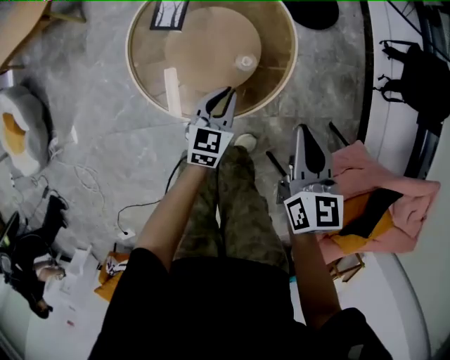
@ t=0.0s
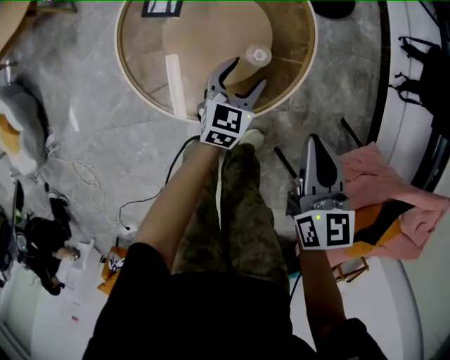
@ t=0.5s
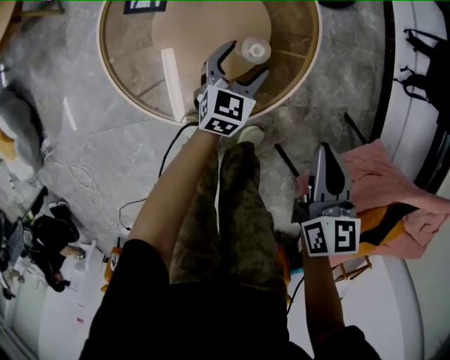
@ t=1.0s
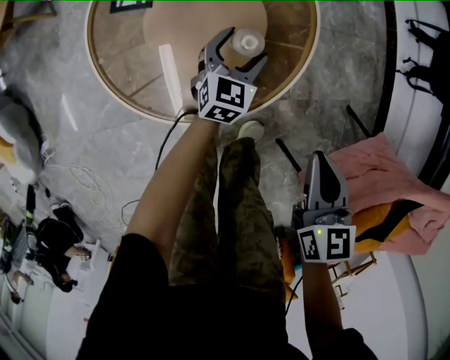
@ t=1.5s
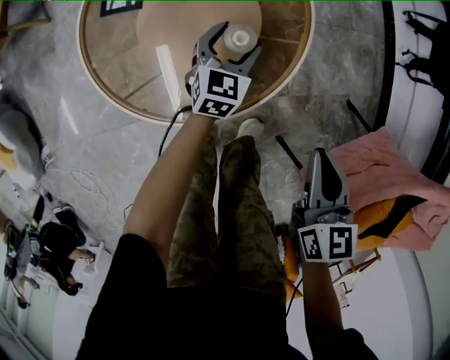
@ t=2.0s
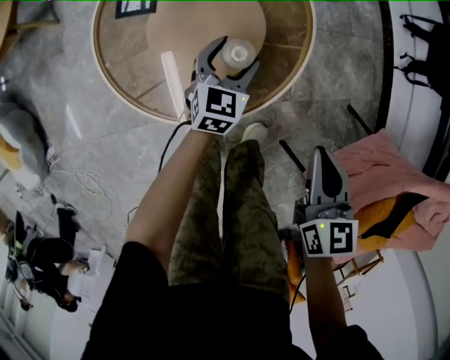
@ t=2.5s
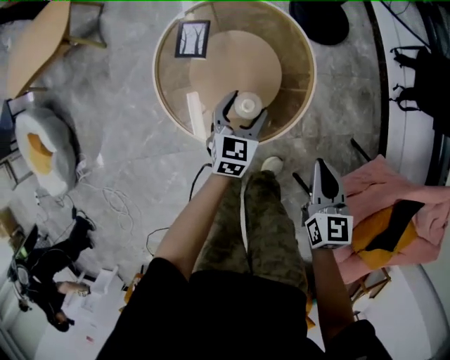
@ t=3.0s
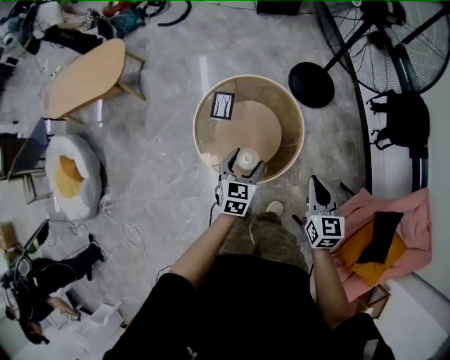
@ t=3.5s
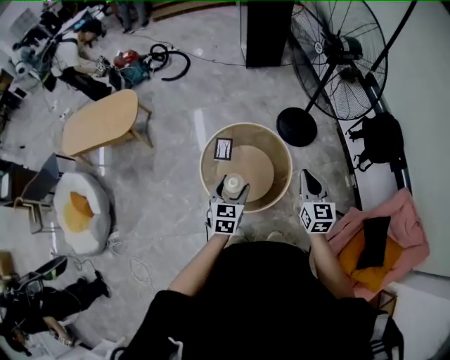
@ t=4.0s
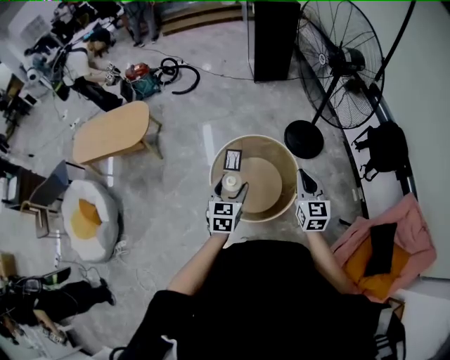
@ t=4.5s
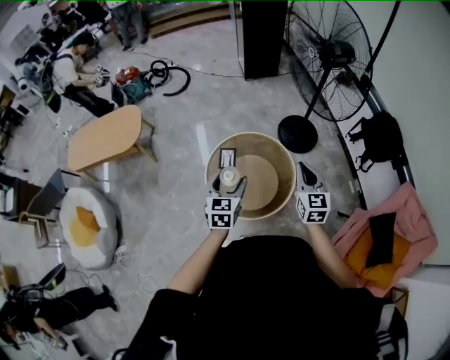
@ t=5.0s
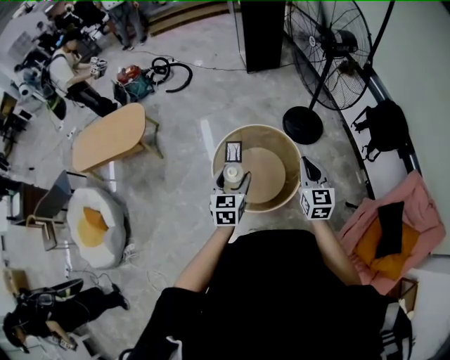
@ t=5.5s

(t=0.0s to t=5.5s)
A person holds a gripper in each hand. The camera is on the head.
t=0.0s - t=2.0s: The left gripper moves downward and forward, roughly 20 cm, and opens, while the right gripper travels downward and to the right by roughly 15 cm.
t=2.0s - t=3.5s: The two grippers go roughly 35 cm upward.
t=3.5s - t=5.5s: Both grippers travel together upward and to the left, approximately 20 cm.

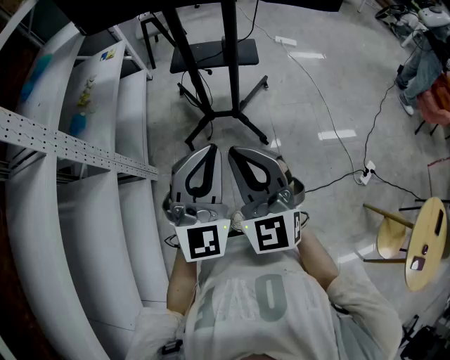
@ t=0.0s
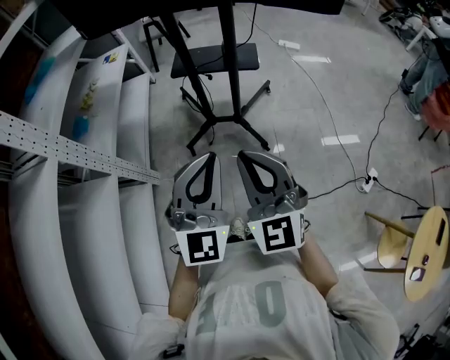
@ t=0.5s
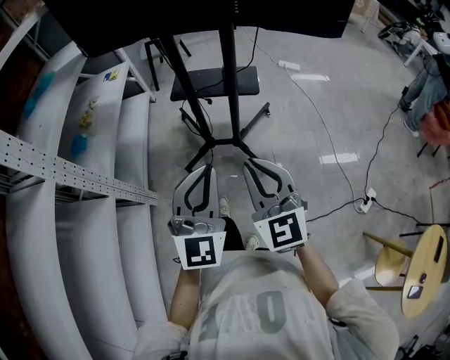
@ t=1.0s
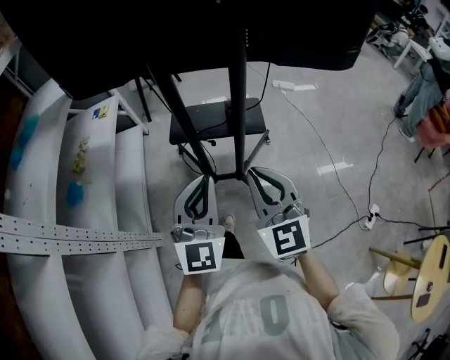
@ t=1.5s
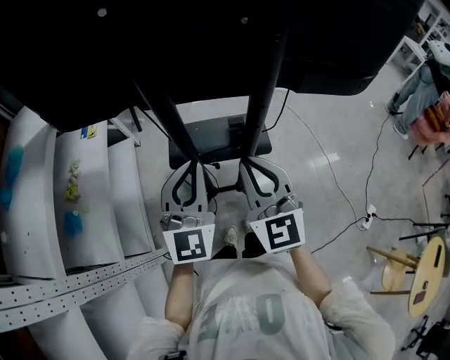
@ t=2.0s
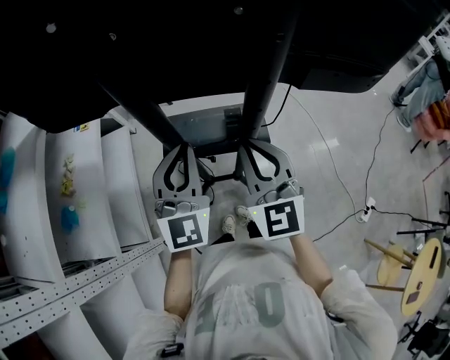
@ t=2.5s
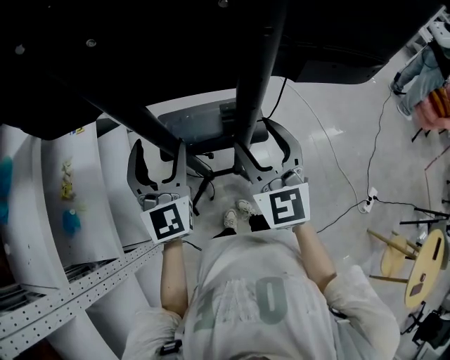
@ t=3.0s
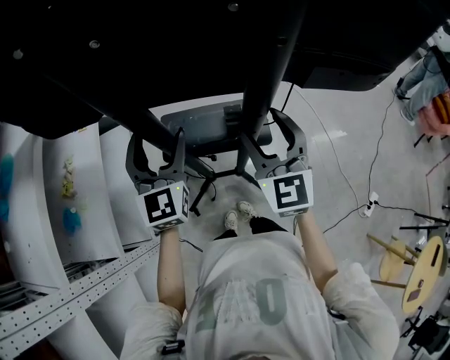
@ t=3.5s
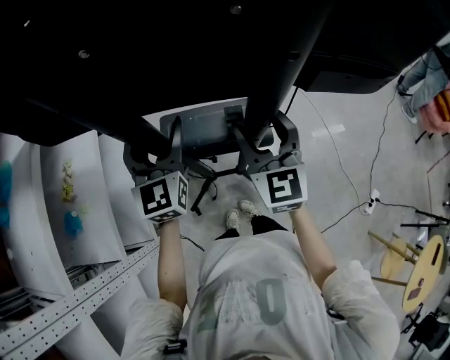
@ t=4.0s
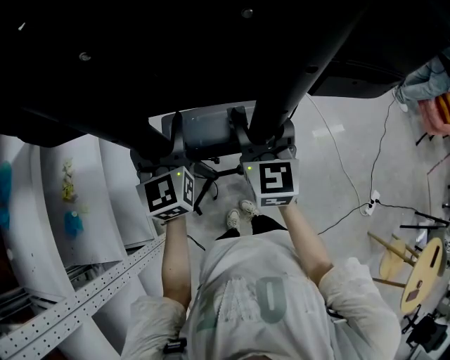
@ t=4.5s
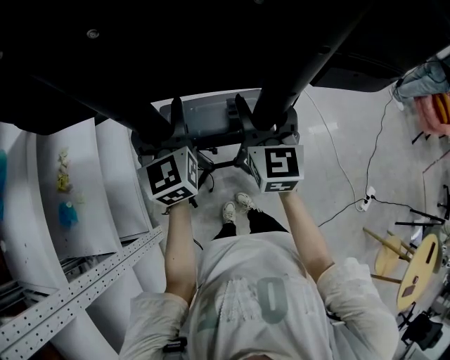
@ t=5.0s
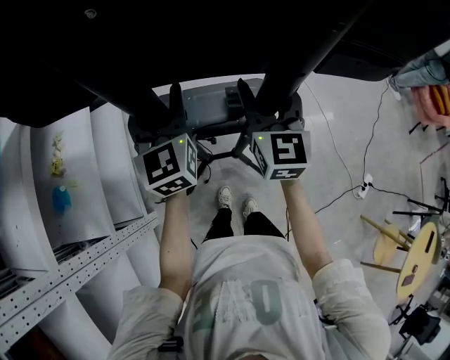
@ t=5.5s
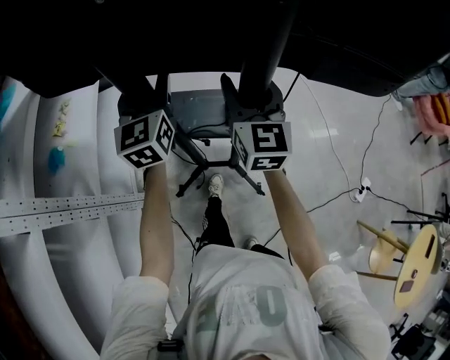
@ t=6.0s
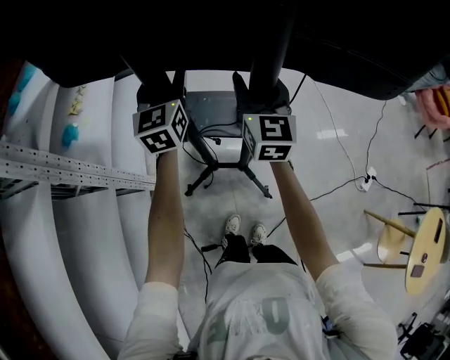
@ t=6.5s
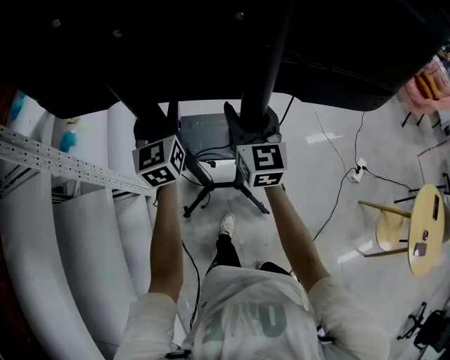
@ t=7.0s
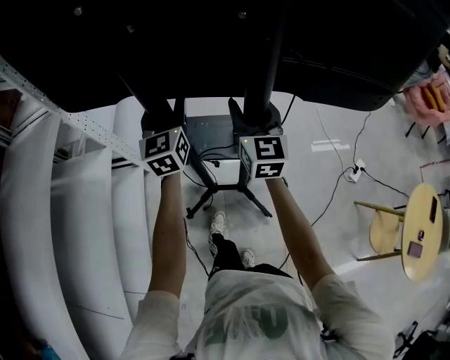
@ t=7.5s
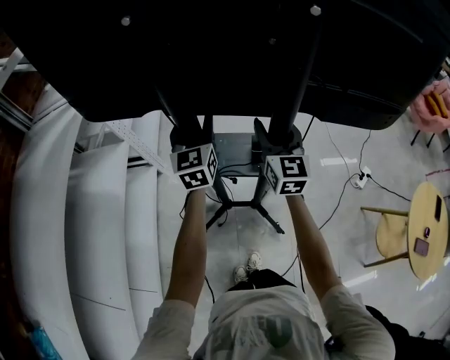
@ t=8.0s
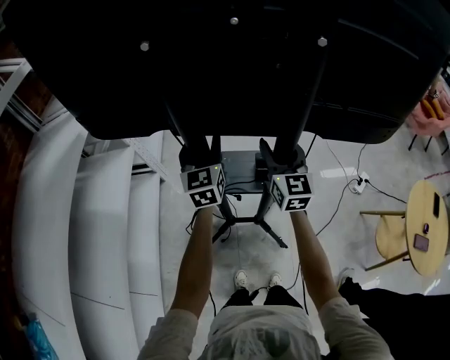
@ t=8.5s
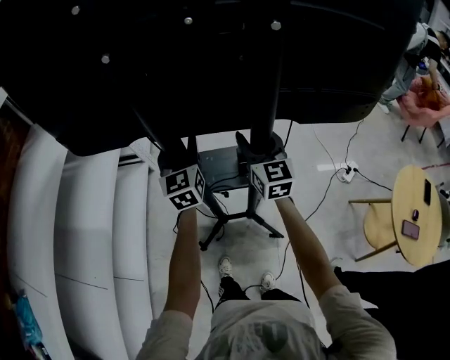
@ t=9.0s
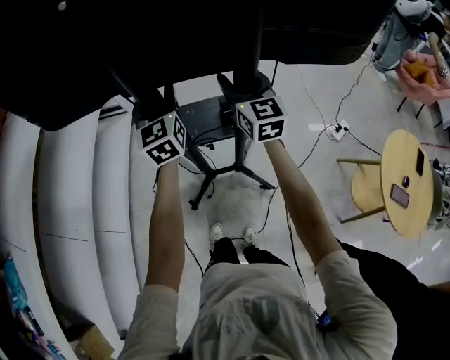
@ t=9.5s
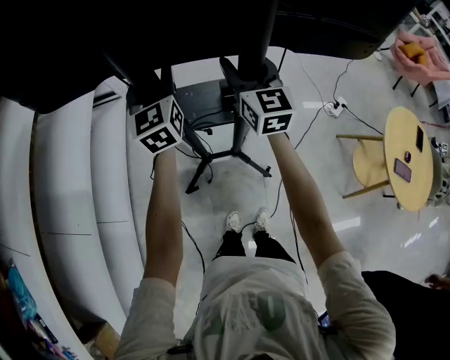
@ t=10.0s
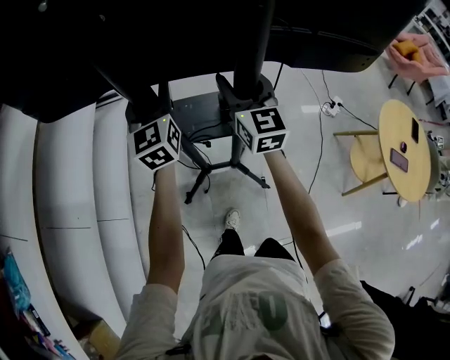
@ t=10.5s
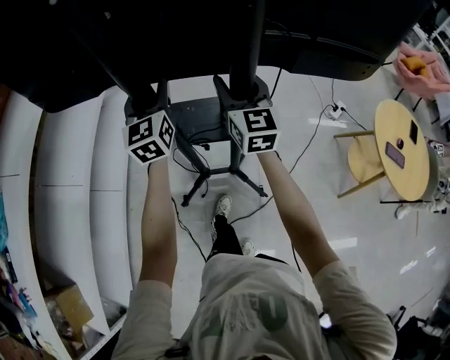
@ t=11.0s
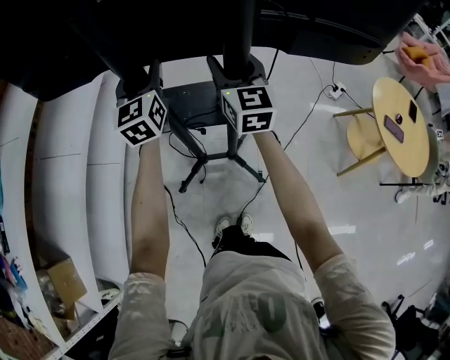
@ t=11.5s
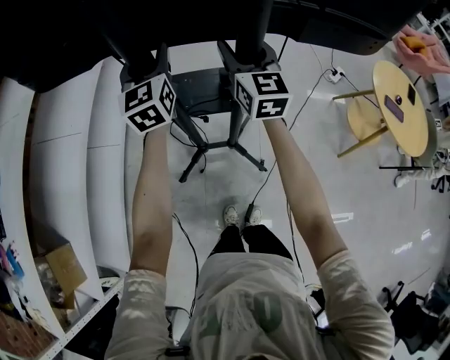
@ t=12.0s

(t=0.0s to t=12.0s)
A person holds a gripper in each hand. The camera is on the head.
t=0.0s - t=2.0s: The two grippers travel together, forward, roughly 40 cm.
t=2.0s - t=4.0s: The left gripper is displaced forward by roughly 15 cm, rotates about 20 degrees, and opens its fingers, while the right gripper is displaced forward and to the right by approximately 15 cm, and opens its fingers.
t=4.0s - t=6.0s: Both grippers travel together backward, approximately 15 cm. The left gripper closes its fingers.
t=6.0s - t=8.0s: The two grippers travel together, backward, approximately 50 cm.
t=8.0s - t=10.0s: The two grippers go approximately 25 cm backward.
t=10.0s - t=12.0s: Both grippers move backward, roughly 35 cm.

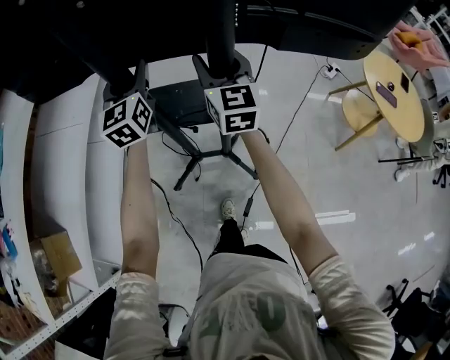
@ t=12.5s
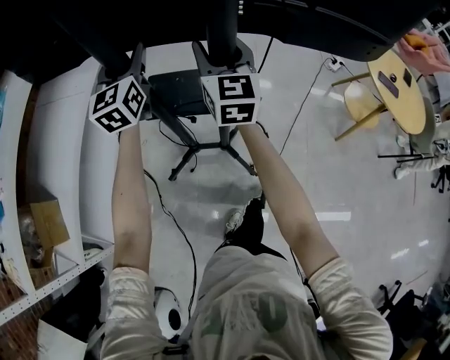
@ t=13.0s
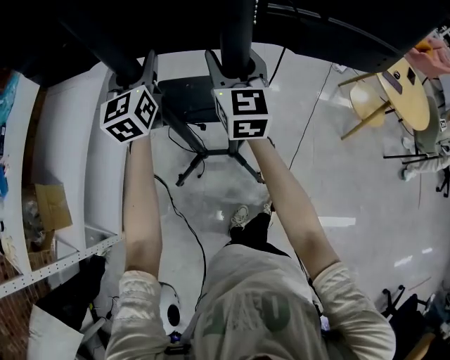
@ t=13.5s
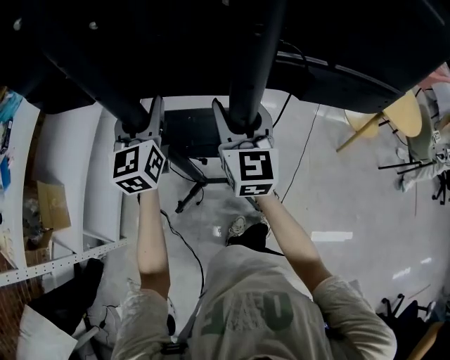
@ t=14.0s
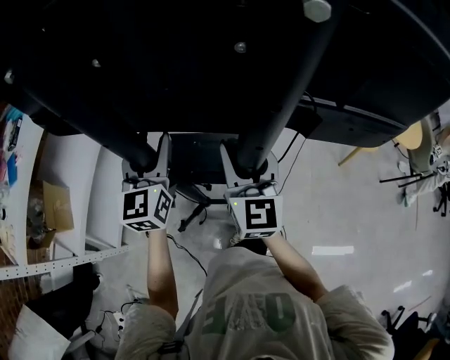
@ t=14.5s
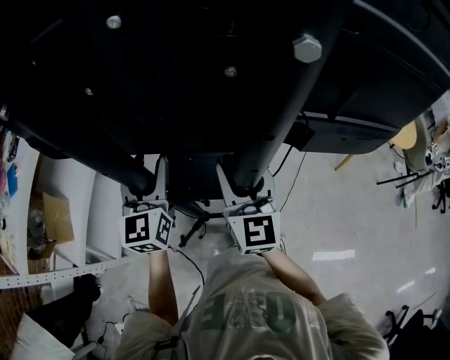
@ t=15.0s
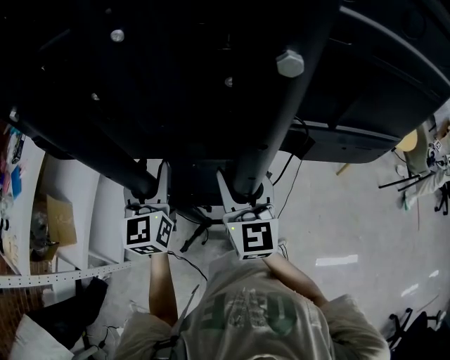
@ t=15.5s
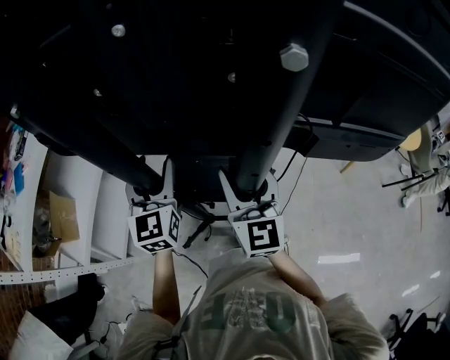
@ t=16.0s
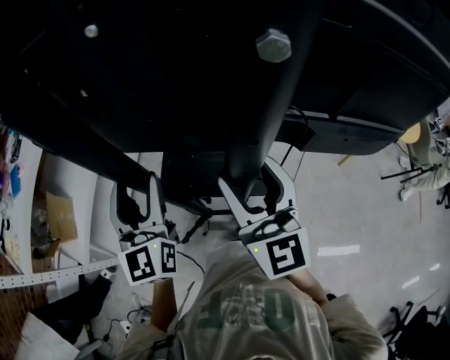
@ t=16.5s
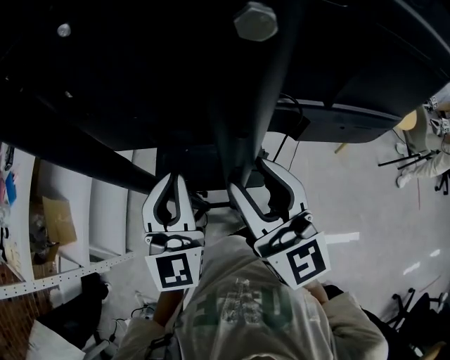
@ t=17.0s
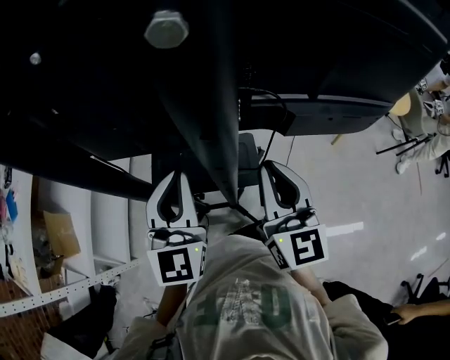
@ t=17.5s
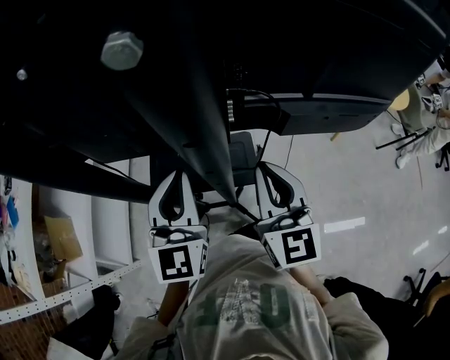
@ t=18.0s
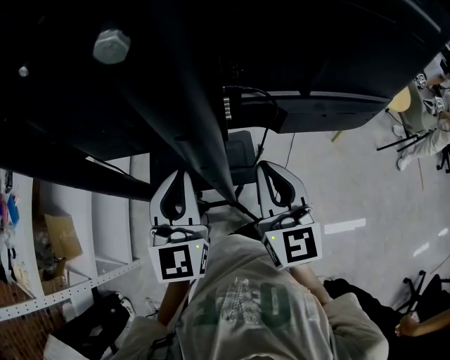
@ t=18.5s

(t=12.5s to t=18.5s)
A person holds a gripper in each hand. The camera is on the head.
t=12.5s - t=14.5s: The grippers both shift backward by about 35 cm.
t=14.5s - t=16.5s: The right gripper moves backward and upward, approximately 10 cm. Meanwhile the left gripper travels backward by roughly 10 cm.
t=16.5s - t=18.5s: The right gripper travels to the right and downward by roughly 10 cm, and closes; the left gripper heads to the right, covering approximately 15 cm, swivels some 20 degrees, and closes its fingers.

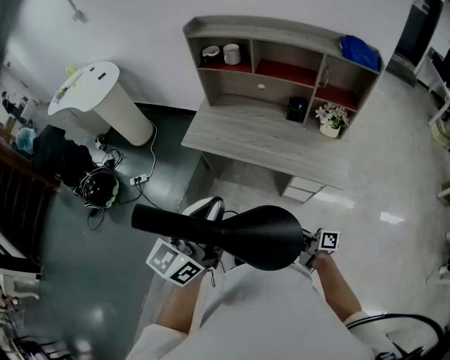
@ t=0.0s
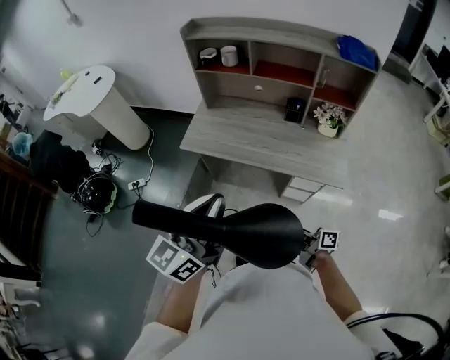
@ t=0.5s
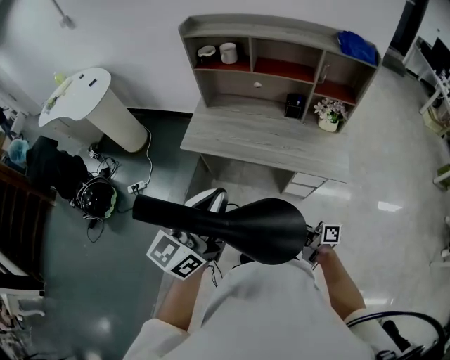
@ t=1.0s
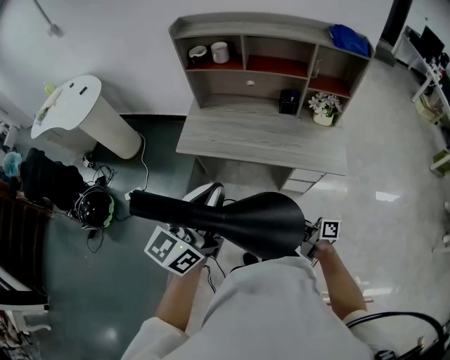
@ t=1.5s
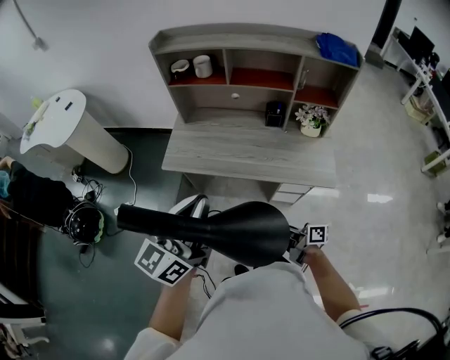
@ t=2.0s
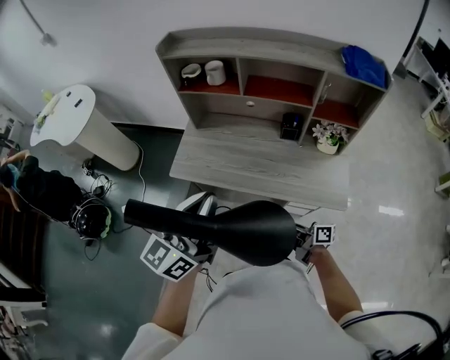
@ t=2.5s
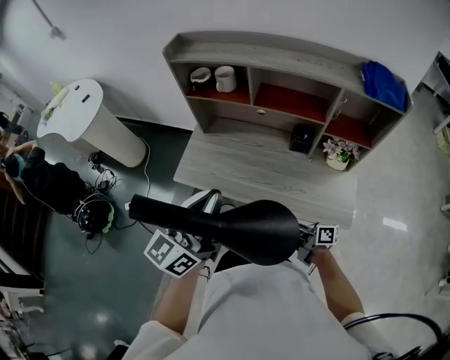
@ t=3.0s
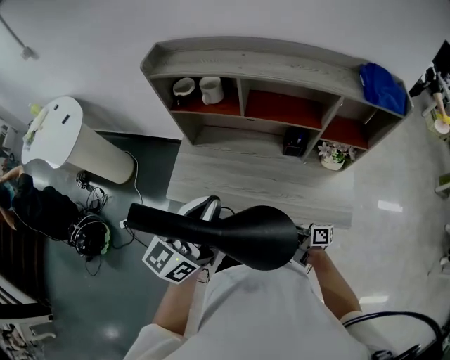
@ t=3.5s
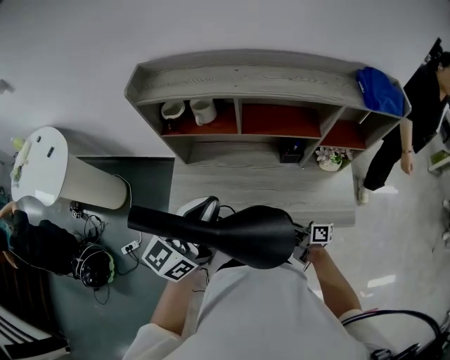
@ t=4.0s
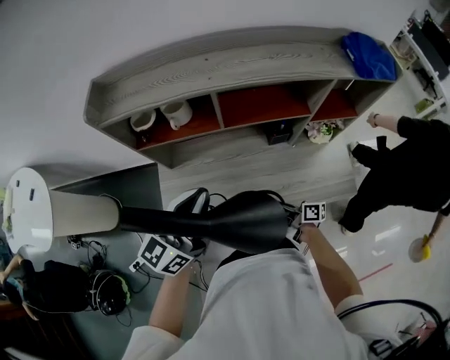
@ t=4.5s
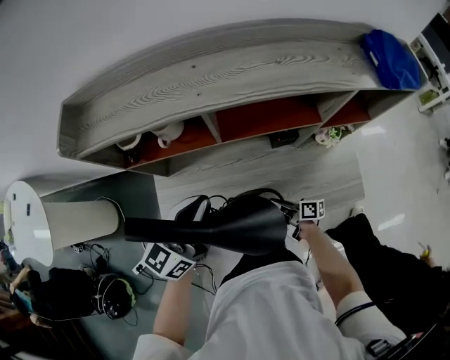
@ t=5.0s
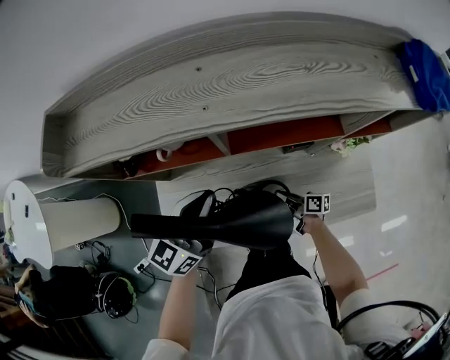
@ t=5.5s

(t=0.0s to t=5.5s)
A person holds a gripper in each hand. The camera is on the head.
t=0.0s - t=2.0s: The two grippers go roughly 10 cm forward.
t=2.0s - t=3.5s: Both grippers travel together forward, about 25 cm.
t=3.5s - t=5.5s: Both grippers travel together forward and downward, about 30 cm. The right gripper rotates about 20 degrees.
